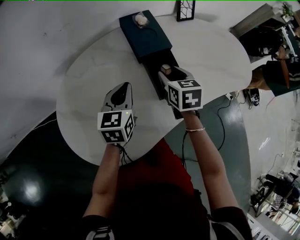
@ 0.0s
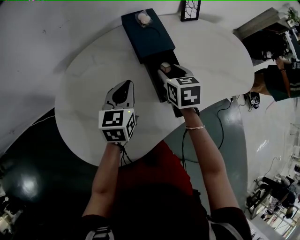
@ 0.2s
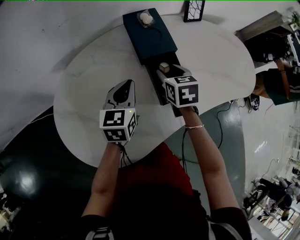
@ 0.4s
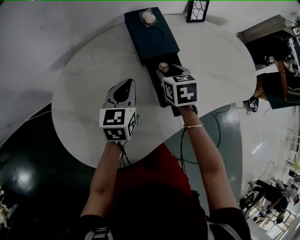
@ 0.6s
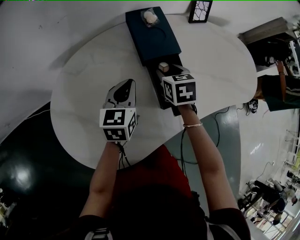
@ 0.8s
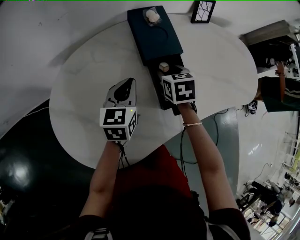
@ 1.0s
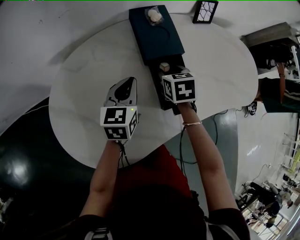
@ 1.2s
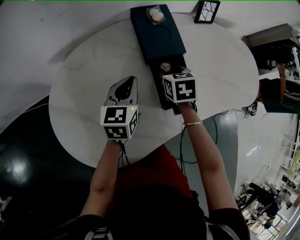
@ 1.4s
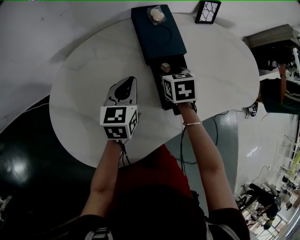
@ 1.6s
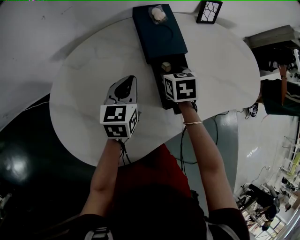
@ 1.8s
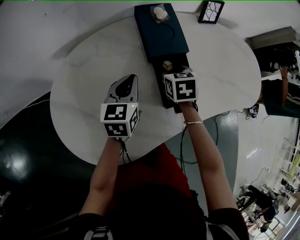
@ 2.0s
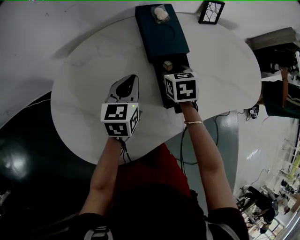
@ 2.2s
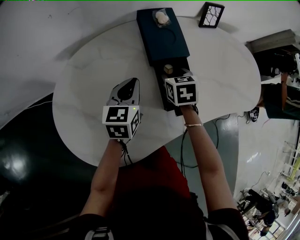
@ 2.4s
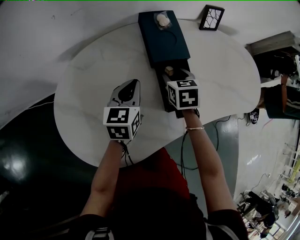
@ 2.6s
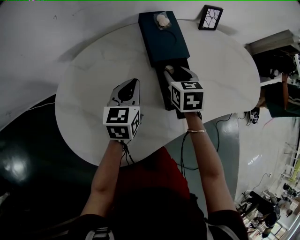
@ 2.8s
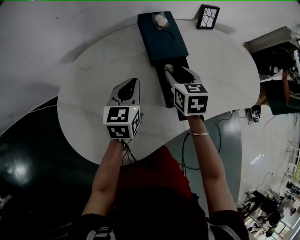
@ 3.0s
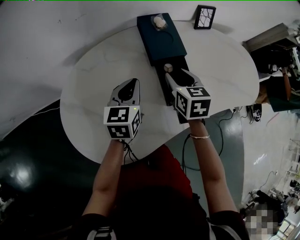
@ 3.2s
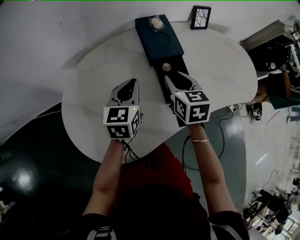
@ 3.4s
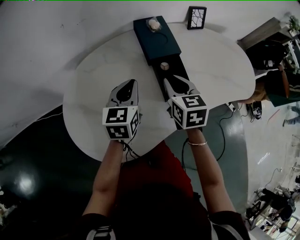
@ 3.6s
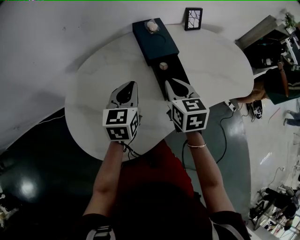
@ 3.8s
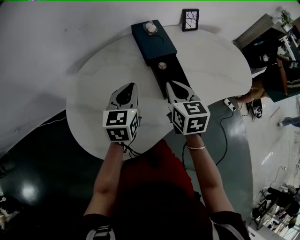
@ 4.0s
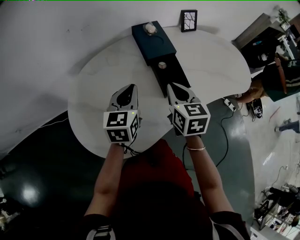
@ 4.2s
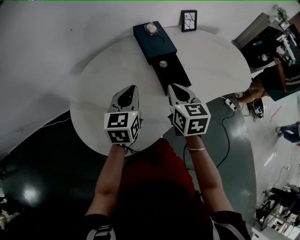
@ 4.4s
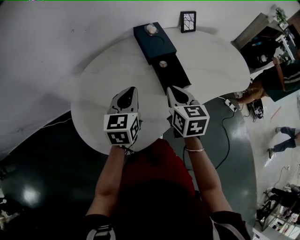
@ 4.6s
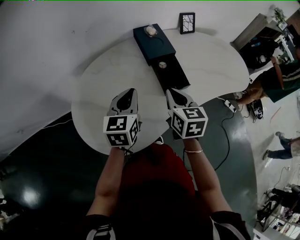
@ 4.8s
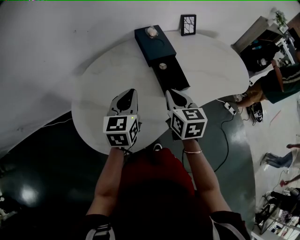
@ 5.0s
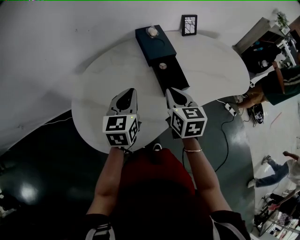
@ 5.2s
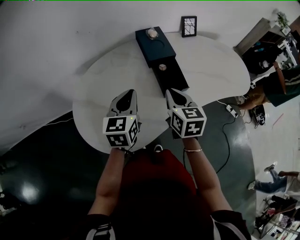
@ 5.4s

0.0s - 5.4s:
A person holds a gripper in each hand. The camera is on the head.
0.0s - 1.4s: The right gripper is displaced downward and forward by some 10 cm; the left gripper shifts by about 5 cm.
1.4s - 2.8s: There are only small adjustments of the grippers.
2.8s - 4.0s: The right gripper moves backward and upward, some 15 cm, and closes, while the left gripper travels upward and backward by approximately 10 cm.
4.0s - 5.4s: The left gripper is displaced backward by about 5 cm.

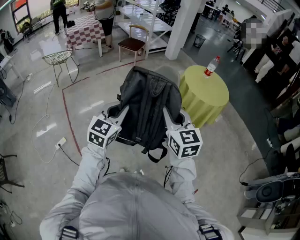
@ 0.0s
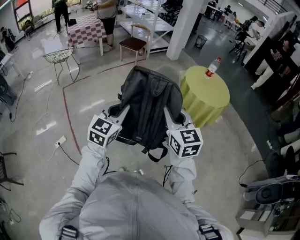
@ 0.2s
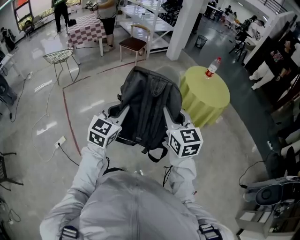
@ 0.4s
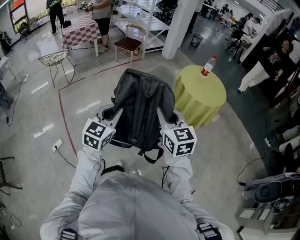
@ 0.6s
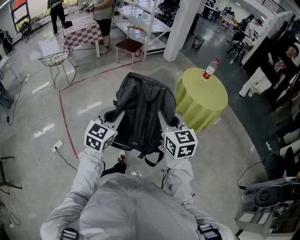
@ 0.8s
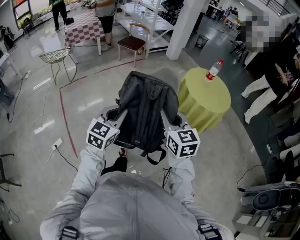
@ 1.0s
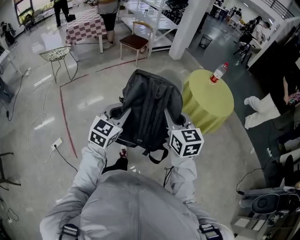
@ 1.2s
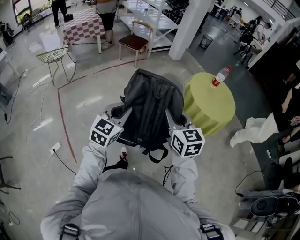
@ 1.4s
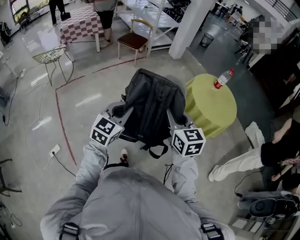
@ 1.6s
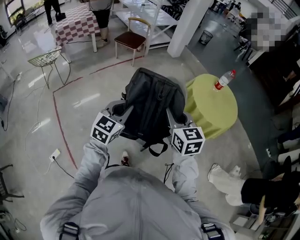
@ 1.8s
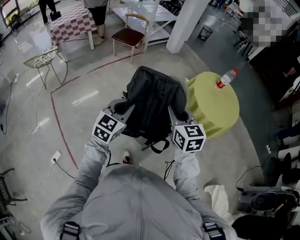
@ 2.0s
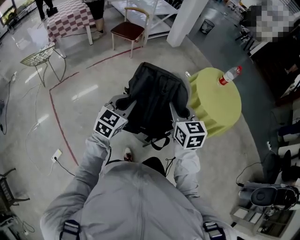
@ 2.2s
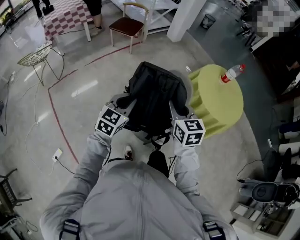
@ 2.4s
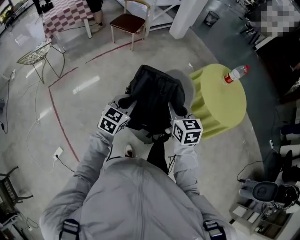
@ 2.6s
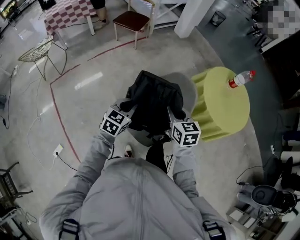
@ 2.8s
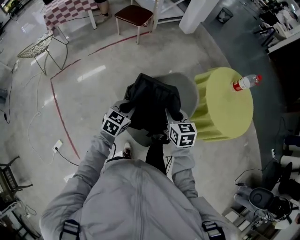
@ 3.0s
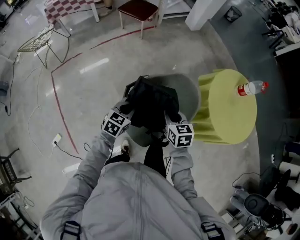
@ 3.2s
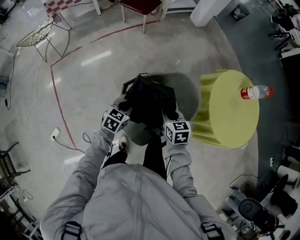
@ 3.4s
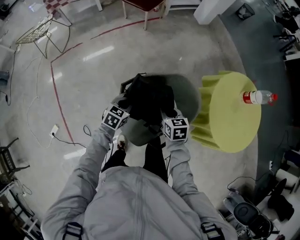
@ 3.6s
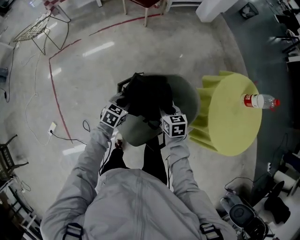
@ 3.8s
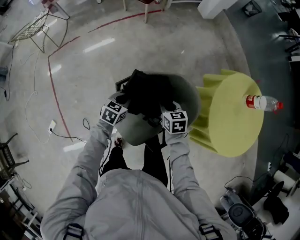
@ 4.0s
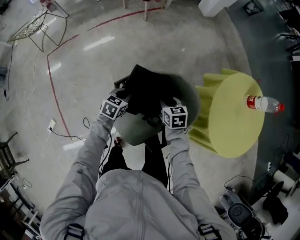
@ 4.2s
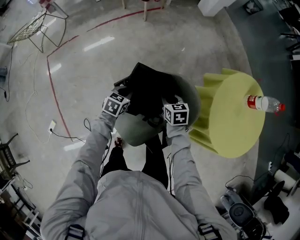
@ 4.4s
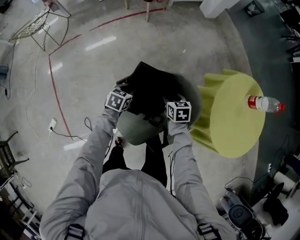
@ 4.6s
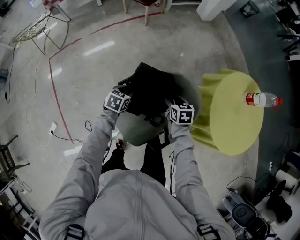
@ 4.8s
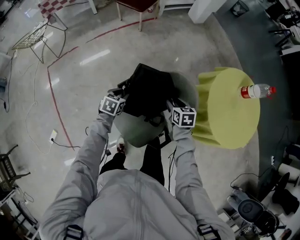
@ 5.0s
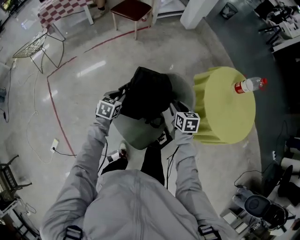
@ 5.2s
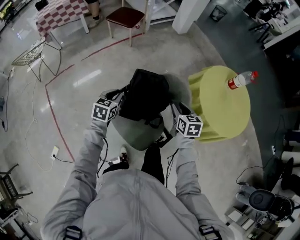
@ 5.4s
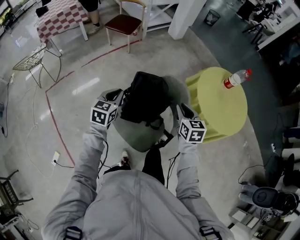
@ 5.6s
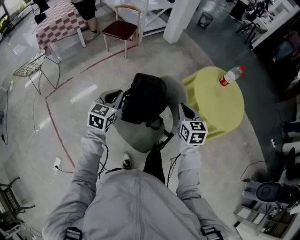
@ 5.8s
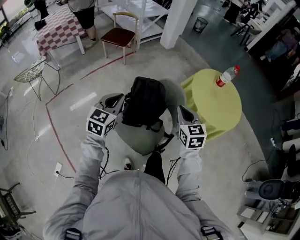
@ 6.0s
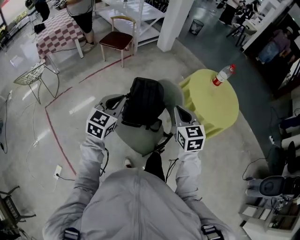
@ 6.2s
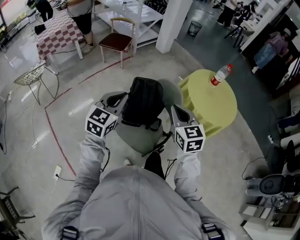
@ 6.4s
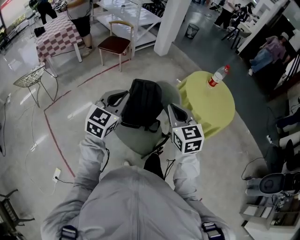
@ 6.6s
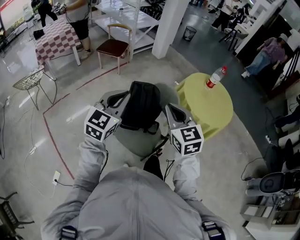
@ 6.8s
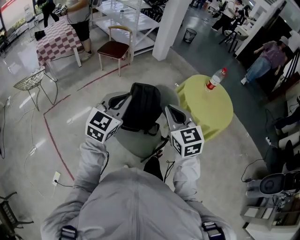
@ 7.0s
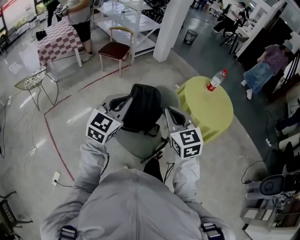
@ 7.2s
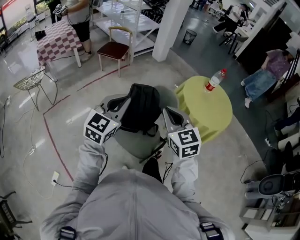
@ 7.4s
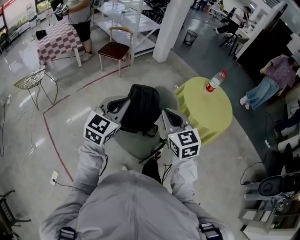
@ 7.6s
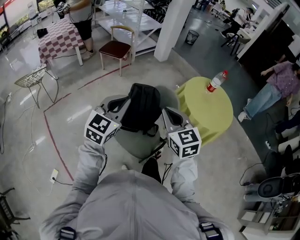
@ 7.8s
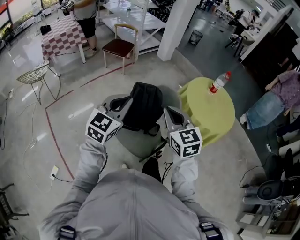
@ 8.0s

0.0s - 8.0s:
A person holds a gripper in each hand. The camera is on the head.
0.0s - 1.6s: Both grippers move forward, about 25 cm.
1.6s - 3.2s: The grippers both shift forward and downward by about 35 cm. The right gripper swivels roughly 30 degrees; the left gripper changes its angle by roughly 30 degrees.
3.2s - 4.8s: The grippers both shift downward and forward by some 20 cm. The left gripper changes its angle by approximately 20 degrees, and opens; the right gripper opens its fingers.
4.8s - 6.4s: Both grippers move upward and backward, approximately 40 cm. The left gripper points its fingers about 40 degrees further upward, and closes up; the right gripper tips its fingers upward by roughly 30 degrees, and closes up.
6.4s - 8.0s: The right gripper ends up about 5 cm from where it was. The left gripper shifts by some 5 cm.

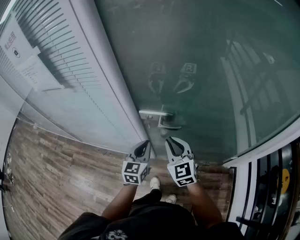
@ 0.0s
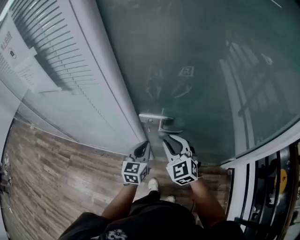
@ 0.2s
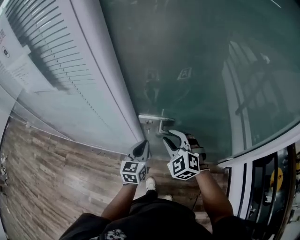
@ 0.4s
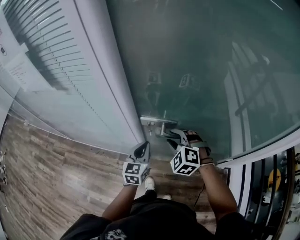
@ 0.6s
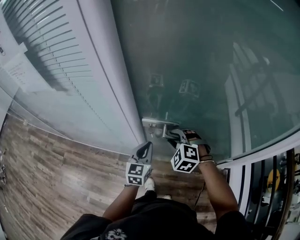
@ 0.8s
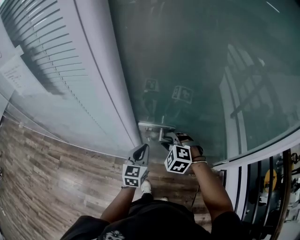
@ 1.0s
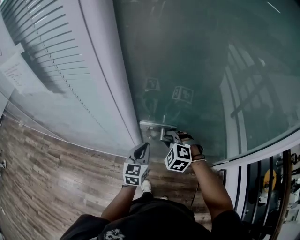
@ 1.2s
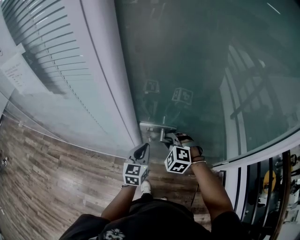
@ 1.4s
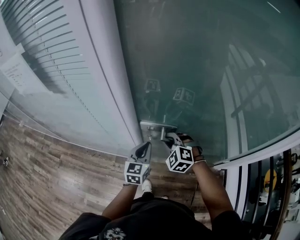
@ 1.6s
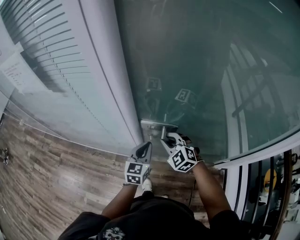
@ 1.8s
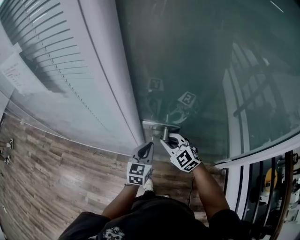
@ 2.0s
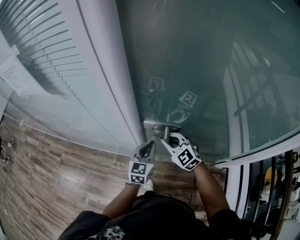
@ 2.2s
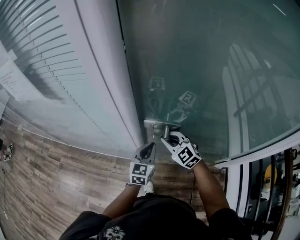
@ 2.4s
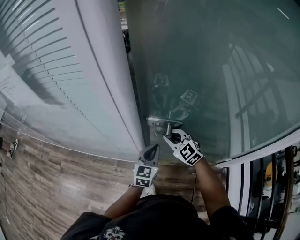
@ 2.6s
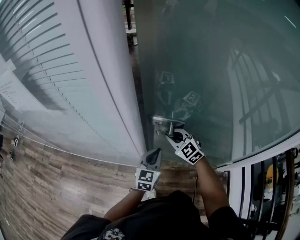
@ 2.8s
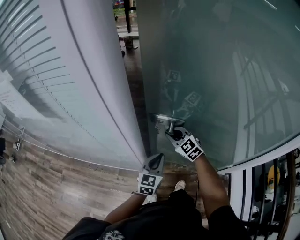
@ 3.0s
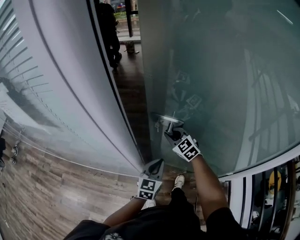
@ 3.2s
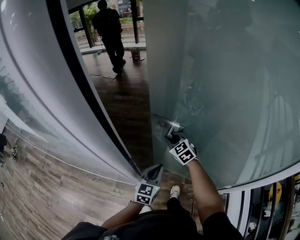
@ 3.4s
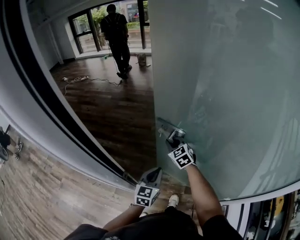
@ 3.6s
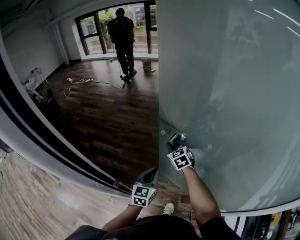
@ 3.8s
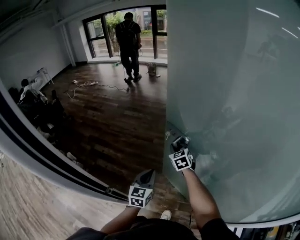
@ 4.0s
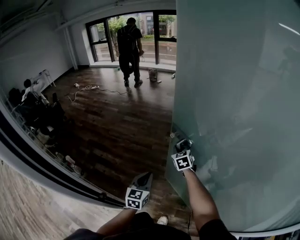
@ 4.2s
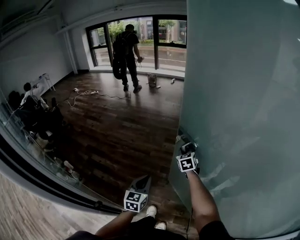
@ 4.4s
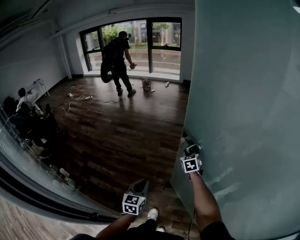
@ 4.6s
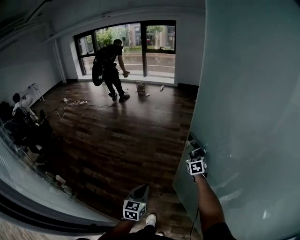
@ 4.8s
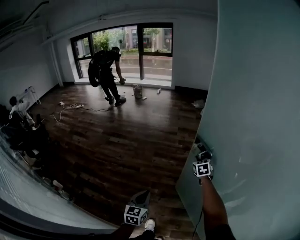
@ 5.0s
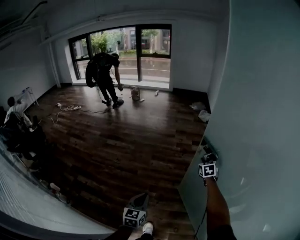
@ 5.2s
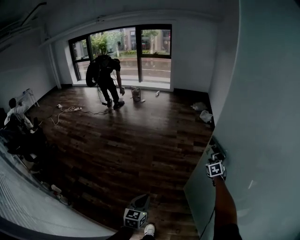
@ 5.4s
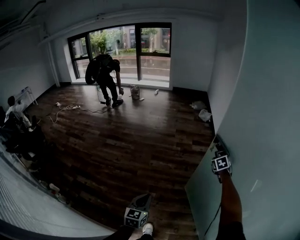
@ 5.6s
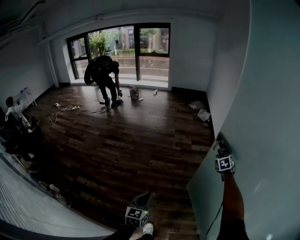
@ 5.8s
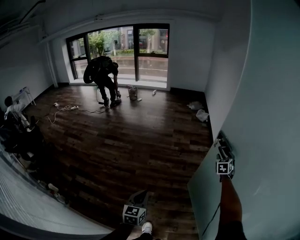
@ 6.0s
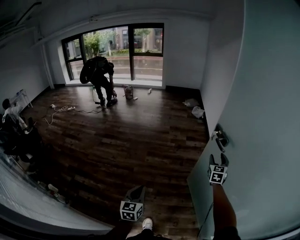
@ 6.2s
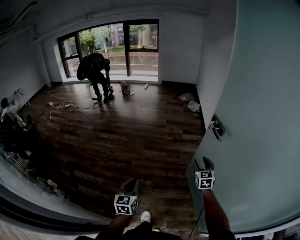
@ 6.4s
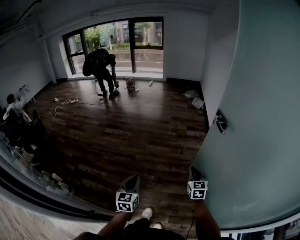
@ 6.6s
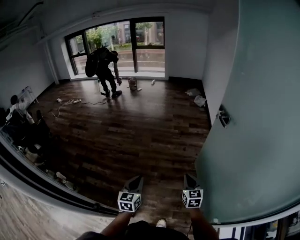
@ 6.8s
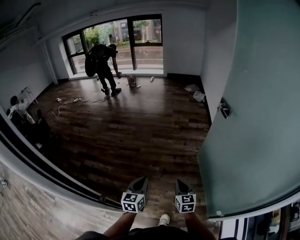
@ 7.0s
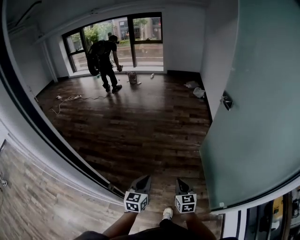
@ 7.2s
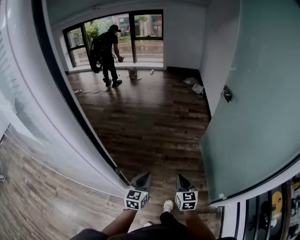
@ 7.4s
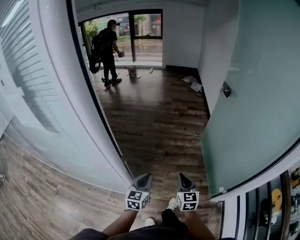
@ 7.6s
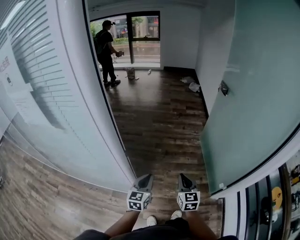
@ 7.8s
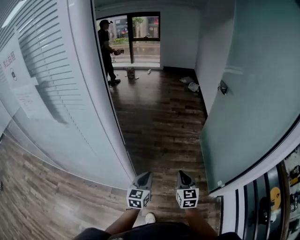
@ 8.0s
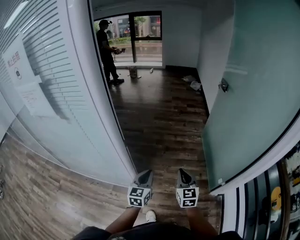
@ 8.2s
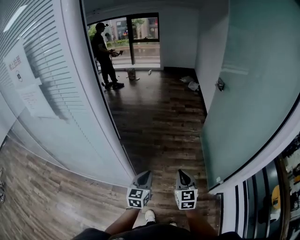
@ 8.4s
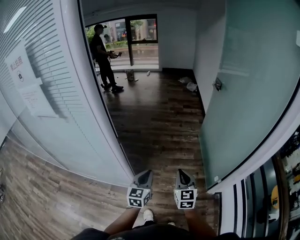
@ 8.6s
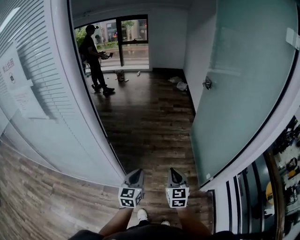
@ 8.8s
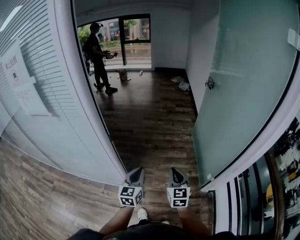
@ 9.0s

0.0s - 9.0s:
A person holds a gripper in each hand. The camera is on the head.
0.0s - 1.6s: The left gripper shifts roughly 5 cm forward. The right gripper travels forward and downward by about 10 cm, turns by some 50 degrees, and opens and closes again.
1.6s - 3.0s: The left gripper ends up approximately 5 cm from where it was, while the right gripper is displaced forward by about 15 cm, and rotates some 30 degrees.
3.0s - 4.4s: The grippers both shift forward and to the right by approximately 40 cm. The right gripper rotates roughly 30 degrees.
4.4s - 6.0s: The right gripper goes roughly 35 cm to the right and forward, changes its angle by approximately 30 degrees, and opens up. Meanwhile the left gripper moves forward, about 15 cm.
6.0s - 7.6s: The pair of grippers is taken backward, about 60 cm. The right gripper rotates roughly 30 degrees, and closes up.
7.6s - 9.0s: The two grippers go approximately 20 cm backward, upward and to the right.

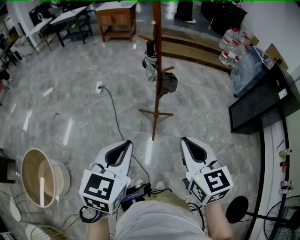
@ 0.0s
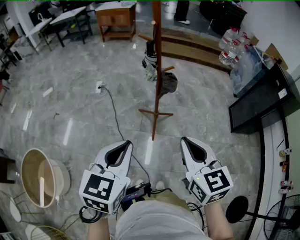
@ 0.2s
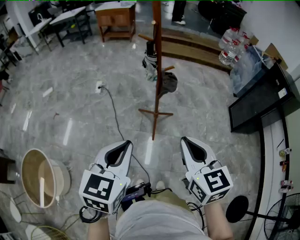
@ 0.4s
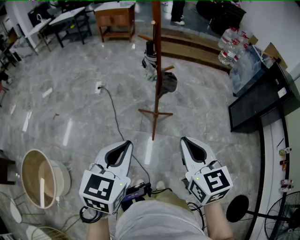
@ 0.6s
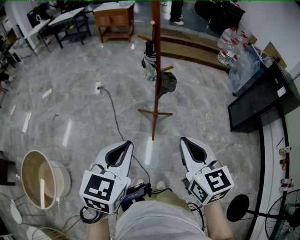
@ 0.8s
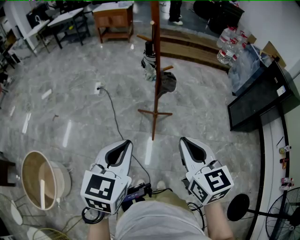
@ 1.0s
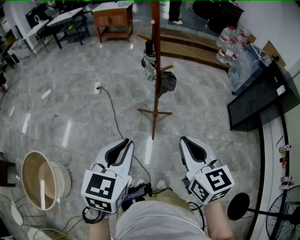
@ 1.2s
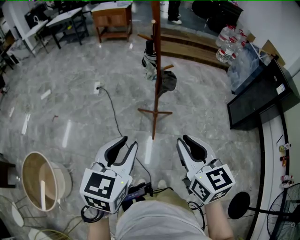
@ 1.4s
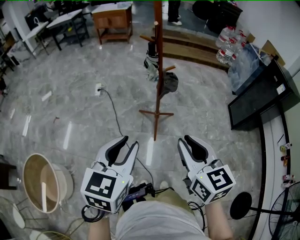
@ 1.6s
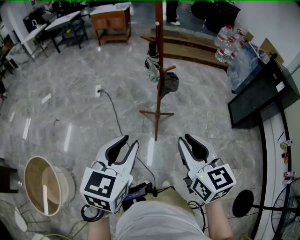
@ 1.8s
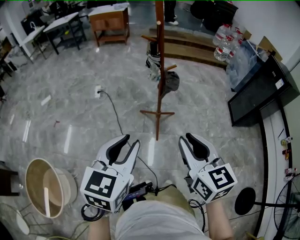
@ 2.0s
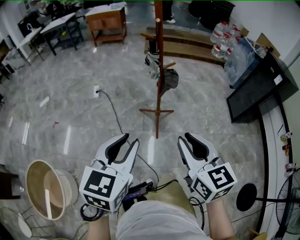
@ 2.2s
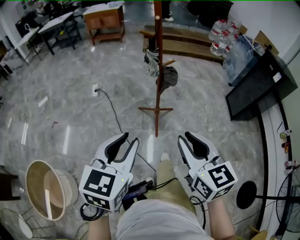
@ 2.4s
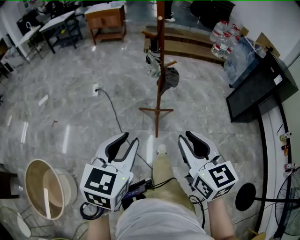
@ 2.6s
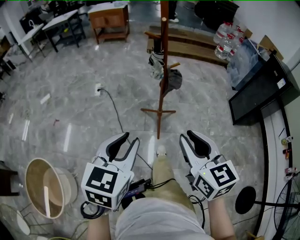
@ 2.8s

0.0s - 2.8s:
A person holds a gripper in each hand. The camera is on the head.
0.0s - 1.4s: The grippers make only small movements.
1.4s - 2.8s: The left gripper heads to the left, covering approximately 5 cm.
